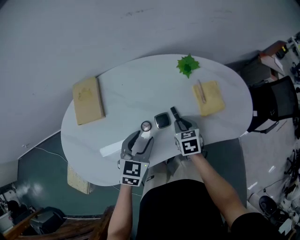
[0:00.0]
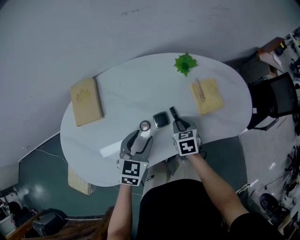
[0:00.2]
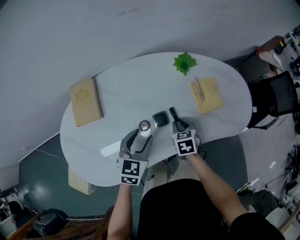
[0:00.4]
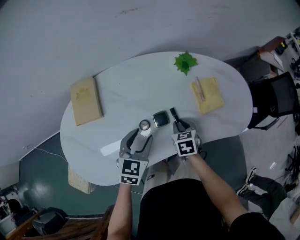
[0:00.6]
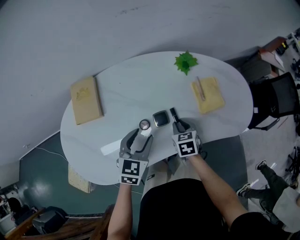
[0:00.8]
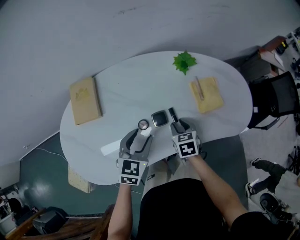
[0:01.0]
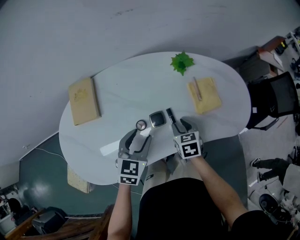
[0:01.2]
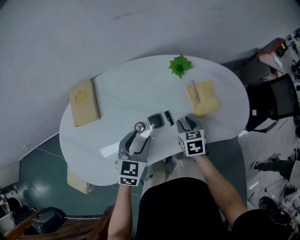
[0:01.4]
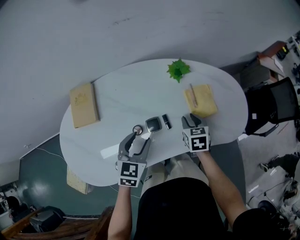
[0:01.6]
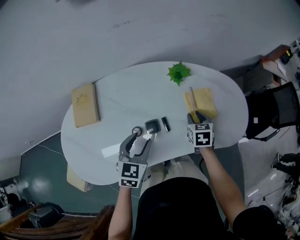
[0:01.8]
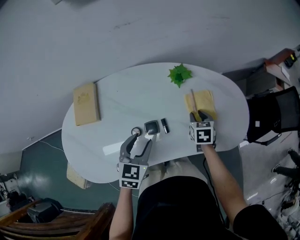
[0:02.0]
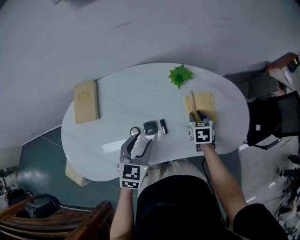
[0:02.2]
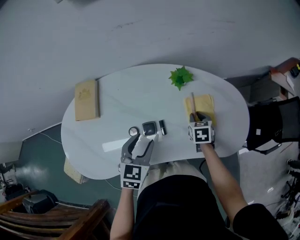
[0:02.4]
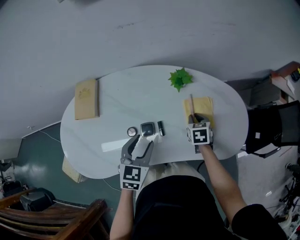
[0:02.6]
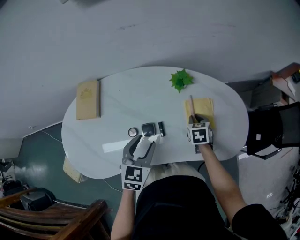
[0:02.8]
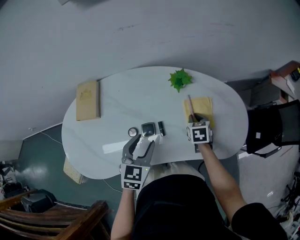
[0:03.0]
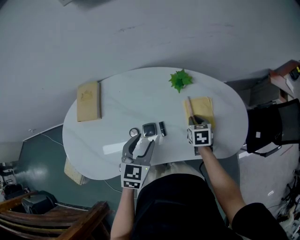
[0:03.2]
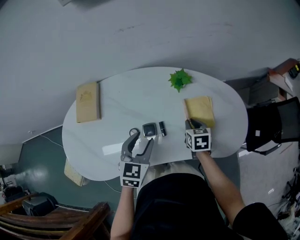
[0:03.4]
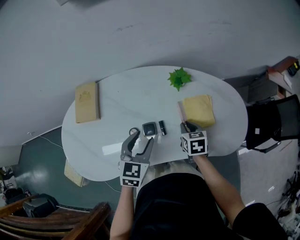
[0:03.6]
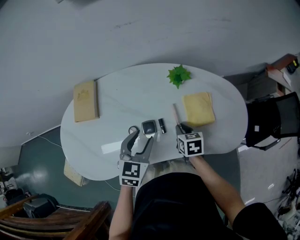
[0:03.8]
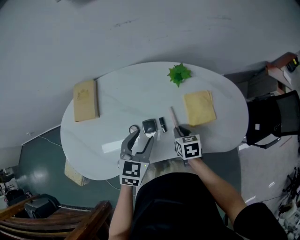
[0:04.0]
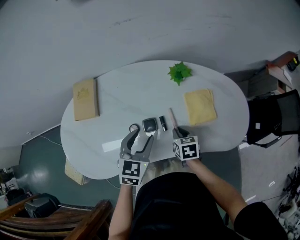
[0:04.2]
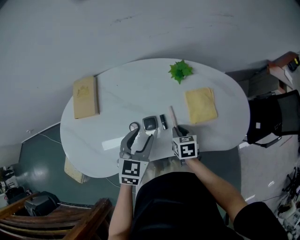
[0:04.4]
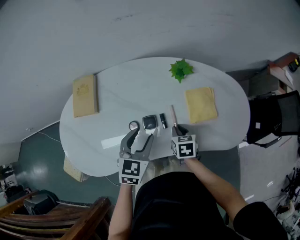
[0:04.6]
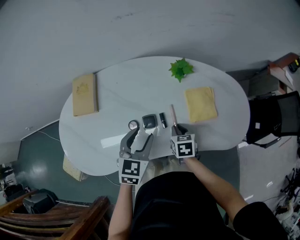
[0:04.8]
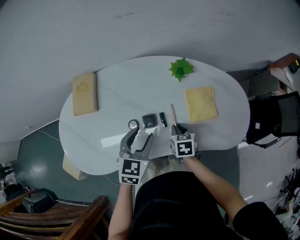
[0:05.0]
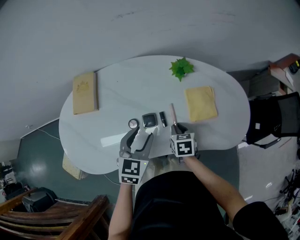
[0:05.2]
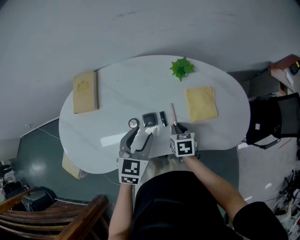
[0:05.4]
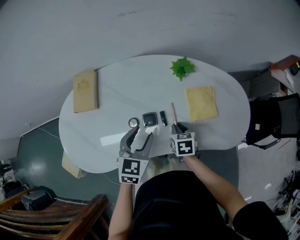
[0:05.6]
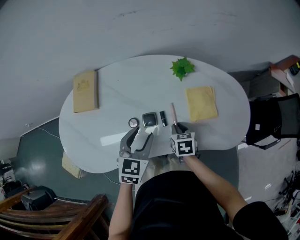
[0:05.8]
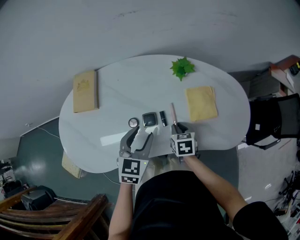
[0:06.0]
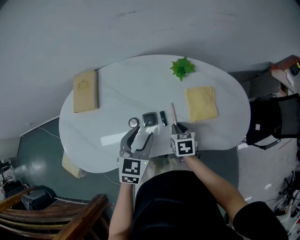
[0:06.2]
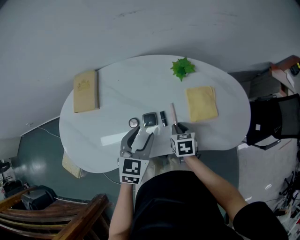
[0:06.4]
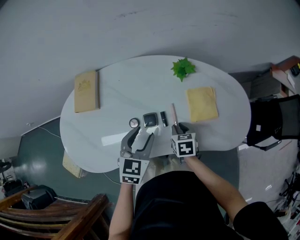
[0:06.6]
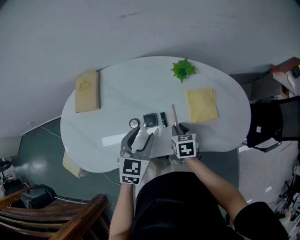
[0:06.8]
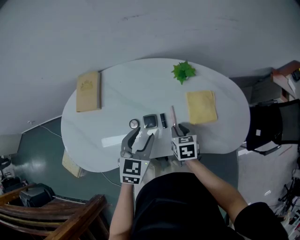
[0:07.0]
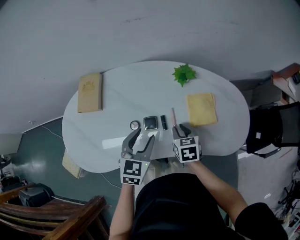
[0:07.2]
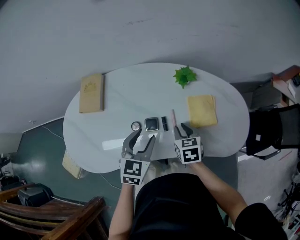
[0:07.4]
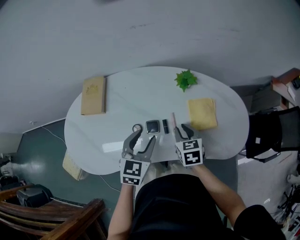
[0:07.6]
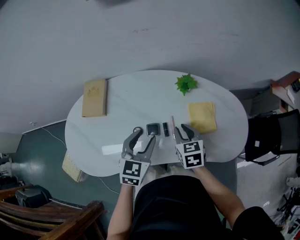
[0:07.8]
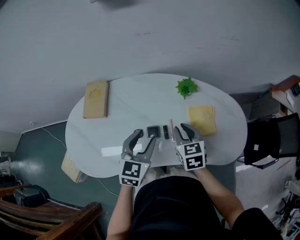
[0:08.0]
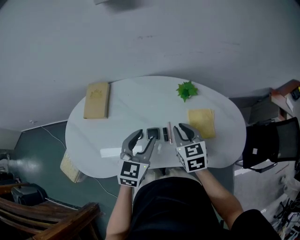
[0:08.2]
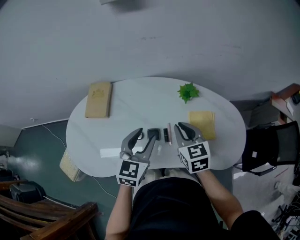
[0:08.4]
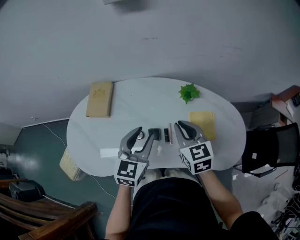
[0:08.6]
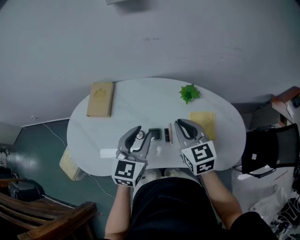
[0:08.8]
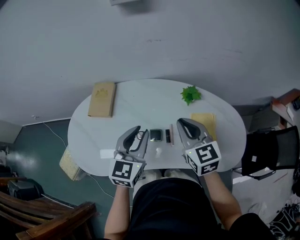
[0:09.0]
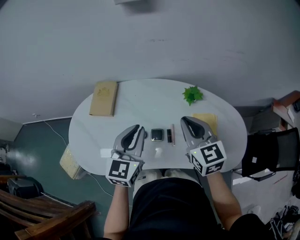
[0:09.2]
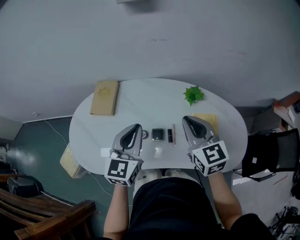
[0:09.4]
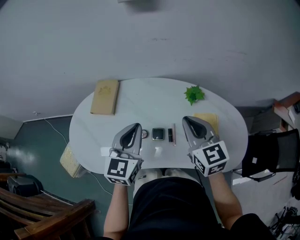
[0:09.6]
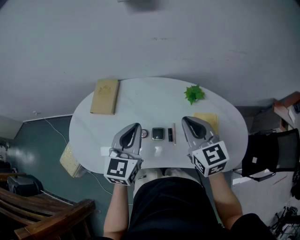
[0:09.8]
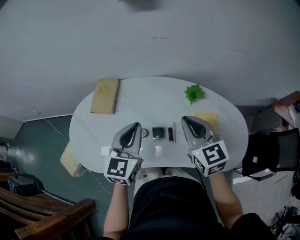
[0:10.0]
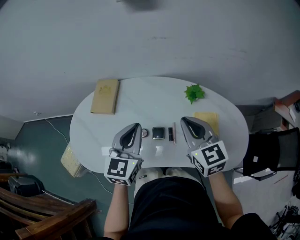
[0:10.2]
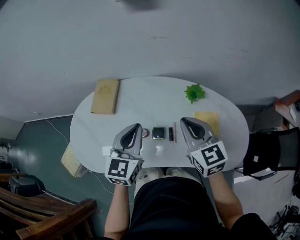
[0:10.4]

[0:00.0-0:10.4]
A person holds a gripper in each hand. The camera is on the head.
0:00.0 to 0:01.4: The right gripper moves about 5 cm.
0:01.4 to 0:03.0: The right gripper goes approximately 15 cm forward and to the right. Meanwhile the left gripper moves to the right, about 5 cm.
0:03.0 to 0:04.4: The right gripper is displaced to the left and backward by approximately 15 cm.
0:04.4 to 0:06.0: The two grippers keep their place.
0:06.0 to 0:07.4: The right gripper heads upward, covering about 5 cm.
0:07.4 to 0:09.0: The left gripper travels upward by some 10 cm, and closes up. The right gripper goes some 20 cm upward, and turns by approximately 30 degrees.
0:09.0 to 0:10.4: The left gripper closes.

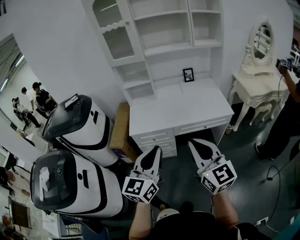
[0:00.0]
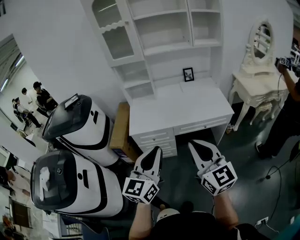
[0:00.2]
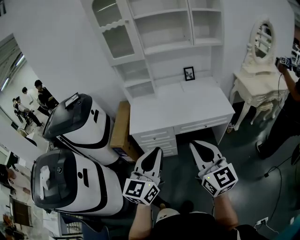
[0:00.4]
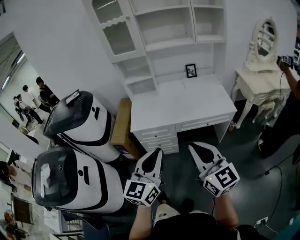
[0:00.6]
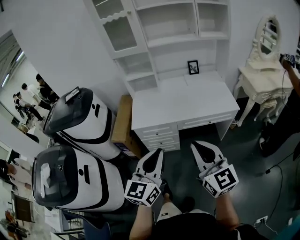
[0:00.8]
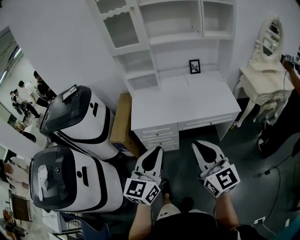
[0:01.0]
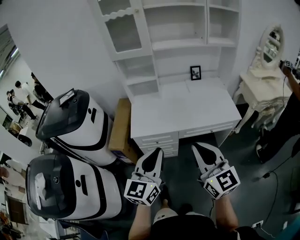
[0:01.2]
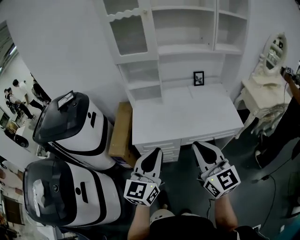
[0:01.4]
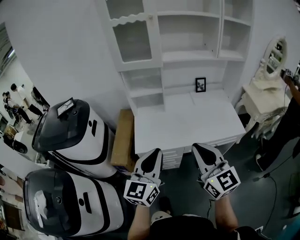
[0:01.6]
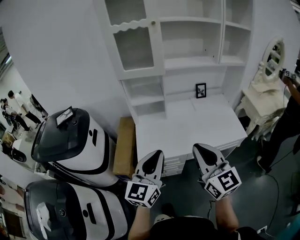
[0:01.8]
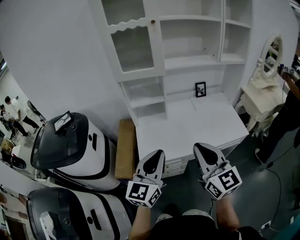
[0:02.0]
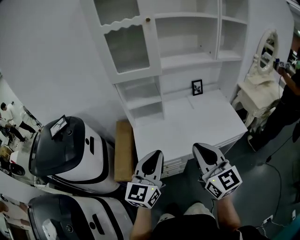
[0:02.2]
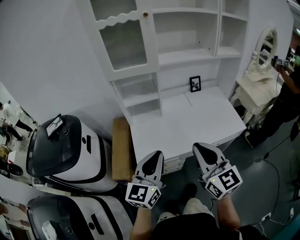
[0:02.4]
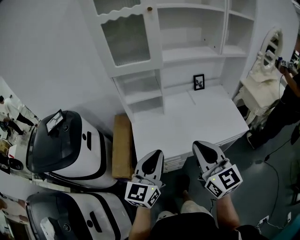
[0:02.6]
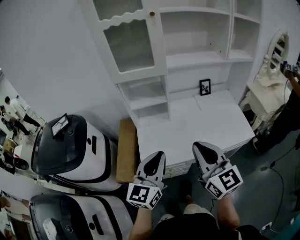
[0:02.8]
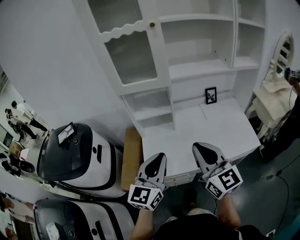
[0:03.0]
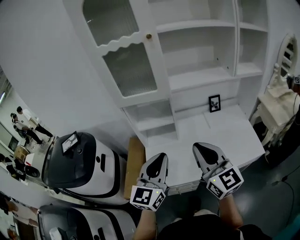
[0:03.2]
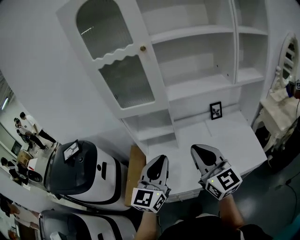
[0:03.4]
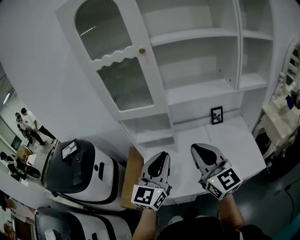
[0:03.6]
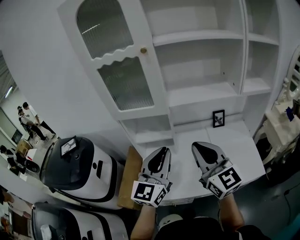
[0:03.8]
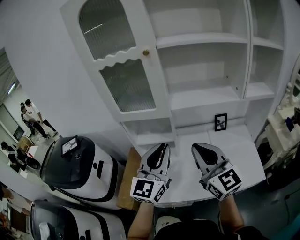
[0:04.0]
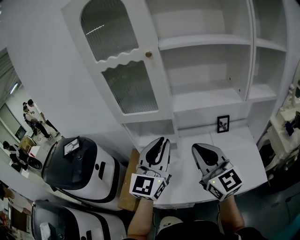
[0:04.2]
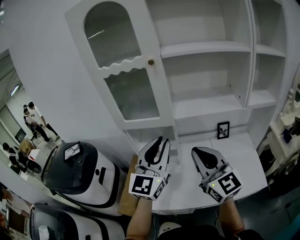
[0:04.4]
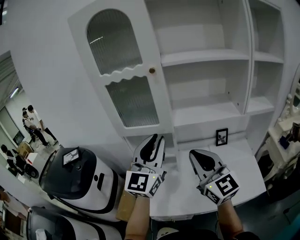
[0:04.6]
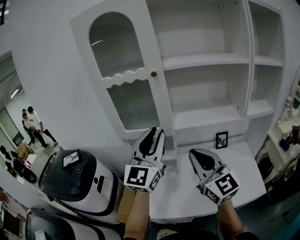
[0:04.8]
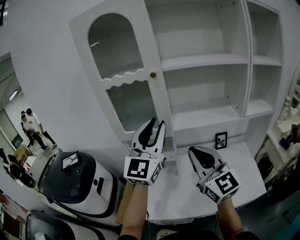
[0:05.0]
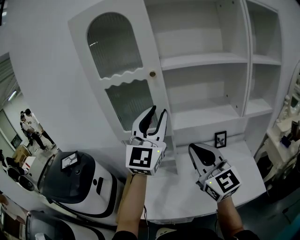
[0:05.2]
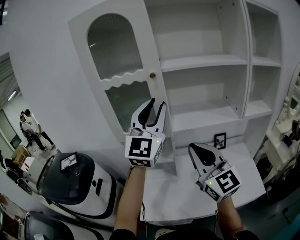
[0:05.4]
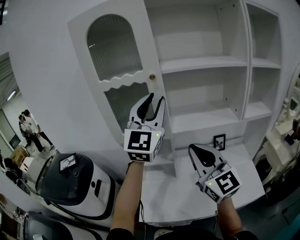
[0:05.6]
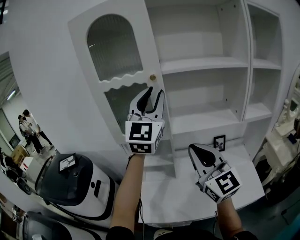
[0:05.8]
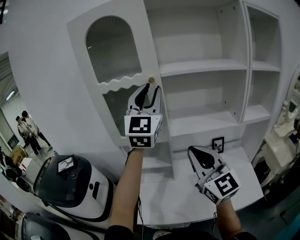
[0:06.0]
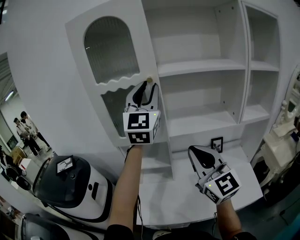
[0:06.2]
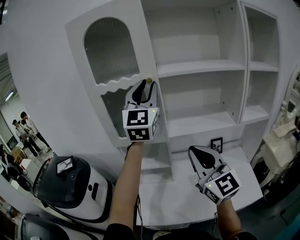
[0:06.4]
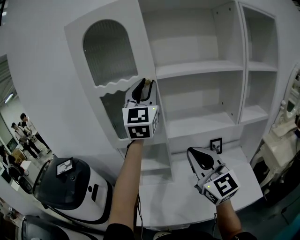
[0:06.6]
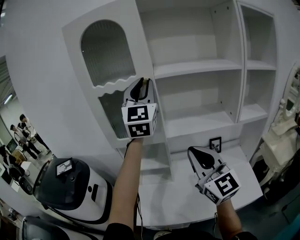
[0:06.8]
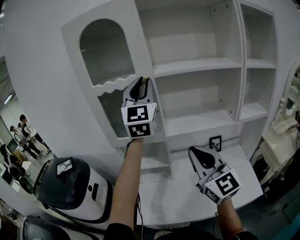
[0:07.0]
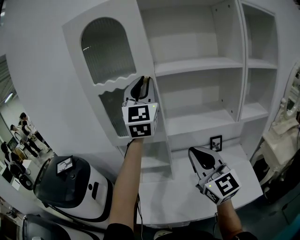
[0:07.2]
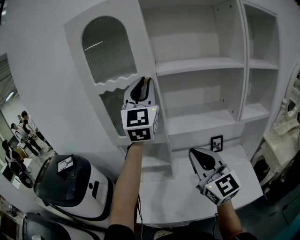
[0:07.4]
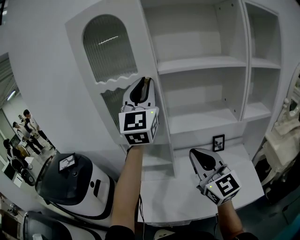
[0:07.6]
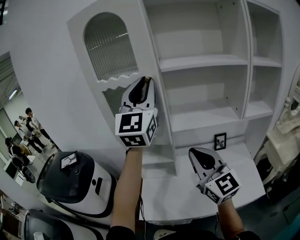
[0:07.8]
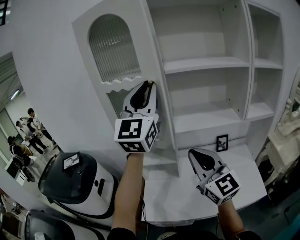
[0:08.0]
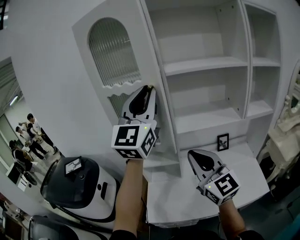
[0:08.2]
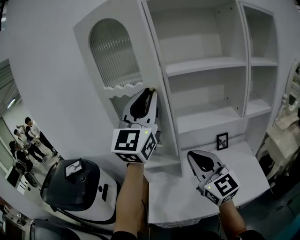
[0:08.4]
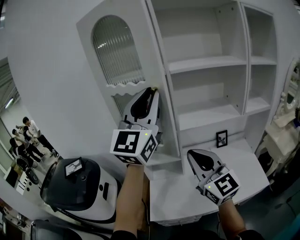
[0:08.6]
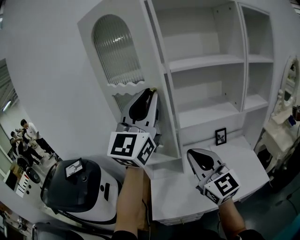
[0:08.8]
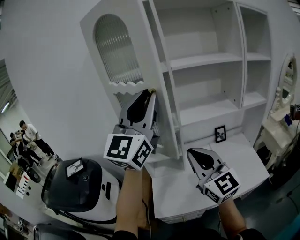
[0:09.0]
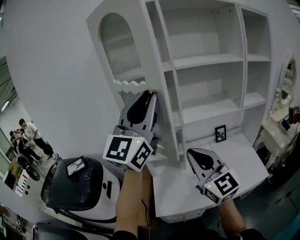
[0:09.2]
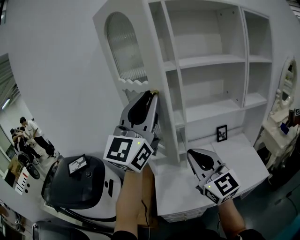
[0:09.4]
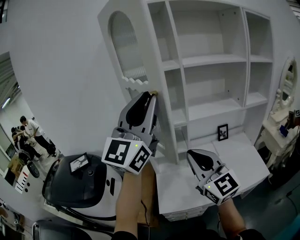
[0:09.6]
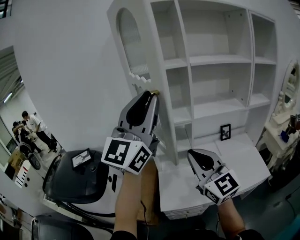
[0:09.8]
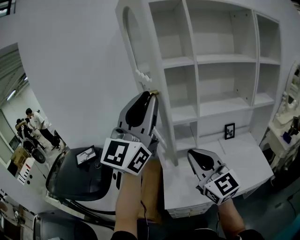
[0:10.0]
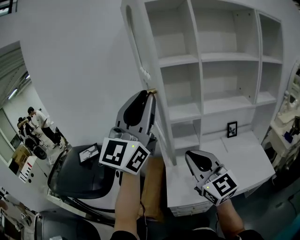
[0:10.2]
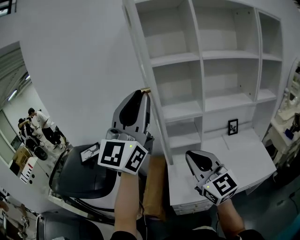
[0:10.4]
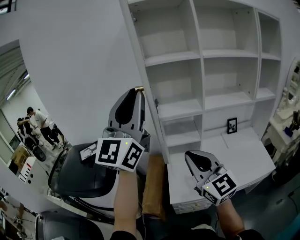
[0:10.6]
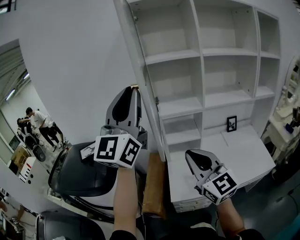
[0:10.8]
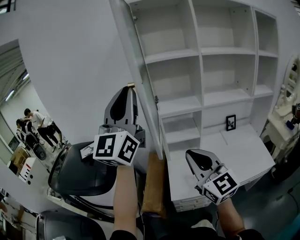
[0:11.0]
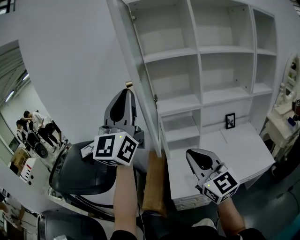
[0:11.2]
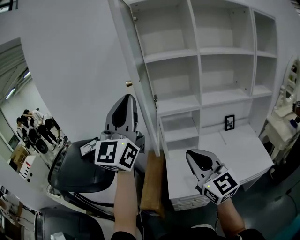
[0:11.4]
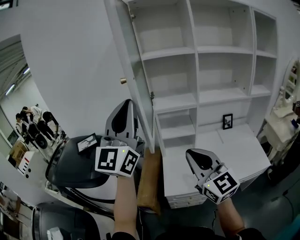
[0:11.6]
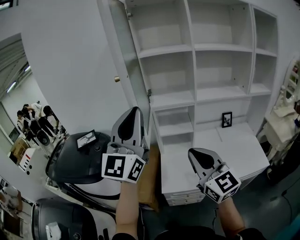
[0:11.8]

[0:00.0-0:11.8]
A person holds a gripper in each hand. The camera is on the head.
0:00.0 to 0:01.4: Both grippers travel together forward and to the left, roughly 20 cm.
0:01.4 to 0:03.0: Both grippers travel together forward, roughly 25 cm.
0:03.0 to 0:04.4: The two grippers go about 20 cm forward, upward and to the right.
0:04.4 to 0:06.0: The right gripper shifts roughly 5 cm upward, while the left gripper heads upward and forward, covering about 25 cm.
0:06.0 to 0:07.4: There are only small adjustments of the grippers.
0:07.4 to 0:08.8: The left gripper moves backward and to the left, about 15 cm, and turns by approximately 20 degrees, while the right gripper travels to the left by approximately 10 cm.
0:08.8 to 0:10.4: The two grippers go approximately 20 cm to the left and backward.
0:10.4 to 0:11.8: The right gripper heads backward, covering some 5 cm. Meanwhile the left gripper heads downward and backward, covering approximately 10 cm.

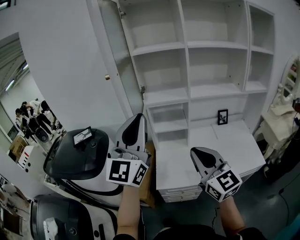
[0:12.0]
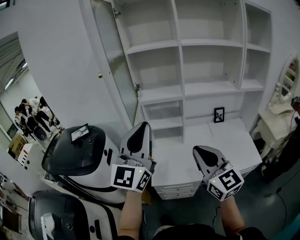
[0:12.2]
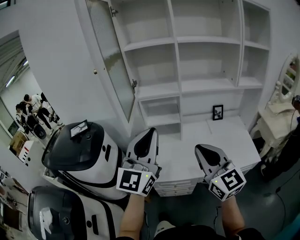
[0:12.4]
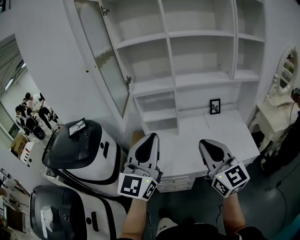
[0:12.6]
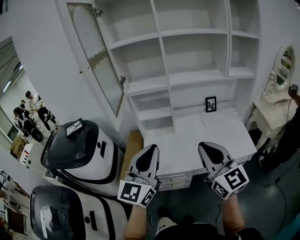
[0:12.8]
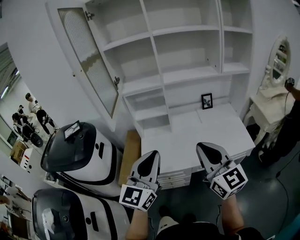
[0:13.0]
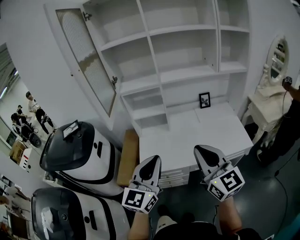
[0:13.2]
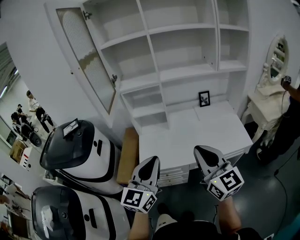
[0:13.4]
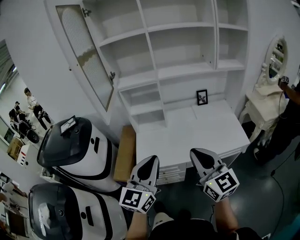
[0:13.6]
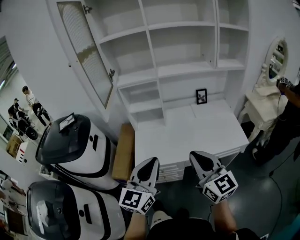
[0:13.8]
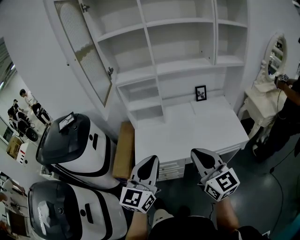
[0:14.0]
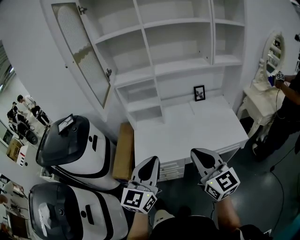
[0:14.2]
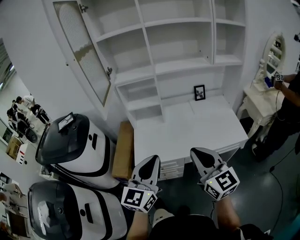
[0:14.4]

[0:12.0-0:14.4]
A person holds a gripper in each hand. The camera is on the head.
0:12.0 to 0:13.2: The left gripper is displaced downward, to the right and backward by roughly 30 cm, and swivels about 20 degrees. The right gripper shifts approximately 20 cm to the right and backward.
0:13.2 to 0:14.4: The right gripper shifts by some 5 cm.
